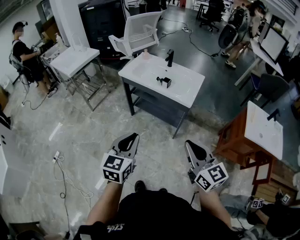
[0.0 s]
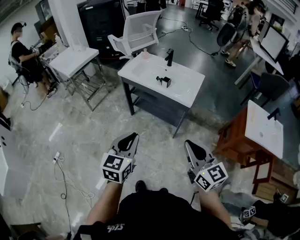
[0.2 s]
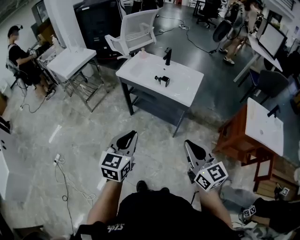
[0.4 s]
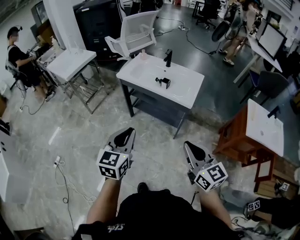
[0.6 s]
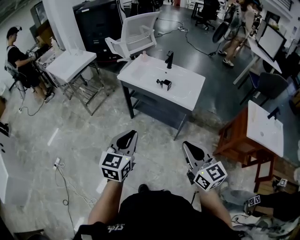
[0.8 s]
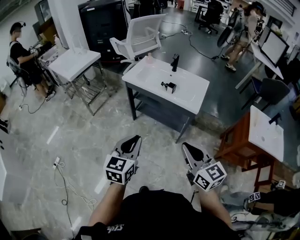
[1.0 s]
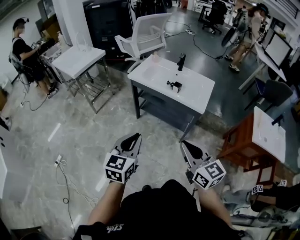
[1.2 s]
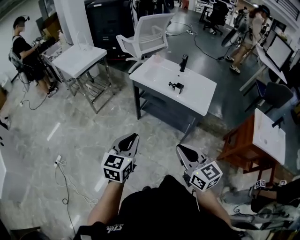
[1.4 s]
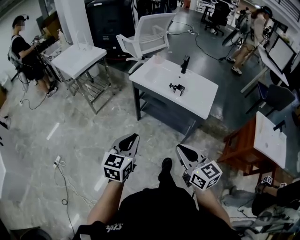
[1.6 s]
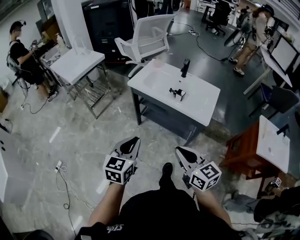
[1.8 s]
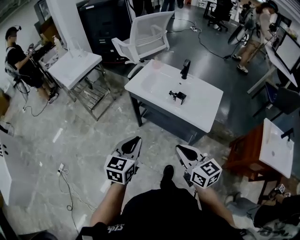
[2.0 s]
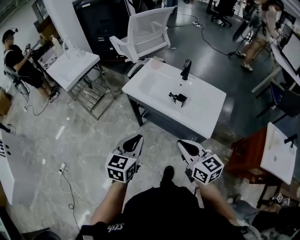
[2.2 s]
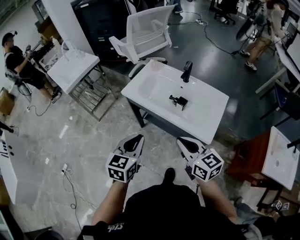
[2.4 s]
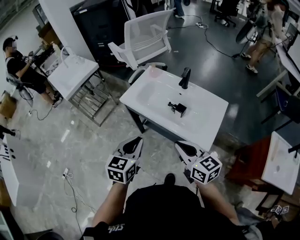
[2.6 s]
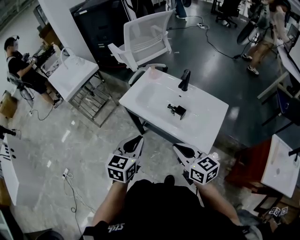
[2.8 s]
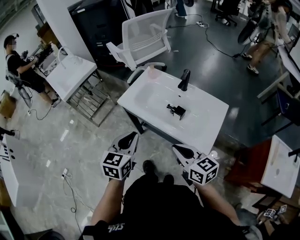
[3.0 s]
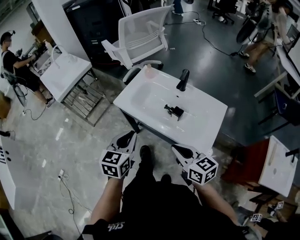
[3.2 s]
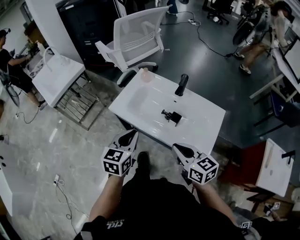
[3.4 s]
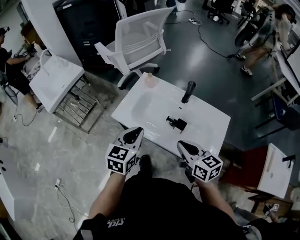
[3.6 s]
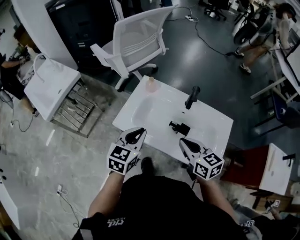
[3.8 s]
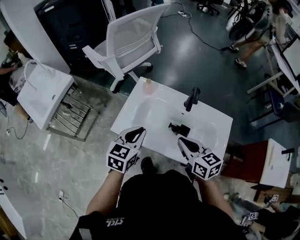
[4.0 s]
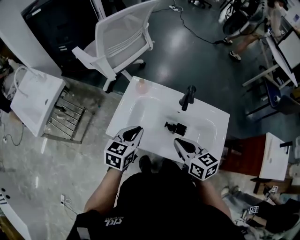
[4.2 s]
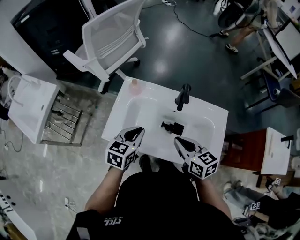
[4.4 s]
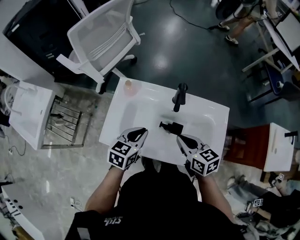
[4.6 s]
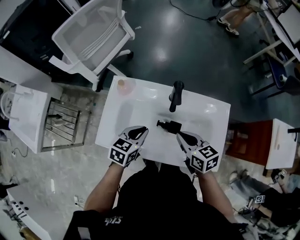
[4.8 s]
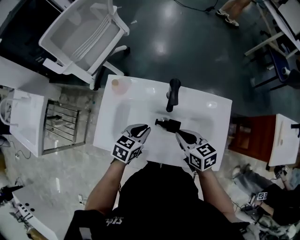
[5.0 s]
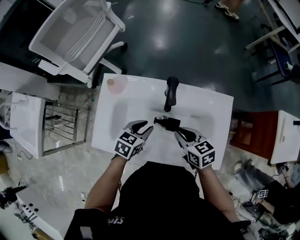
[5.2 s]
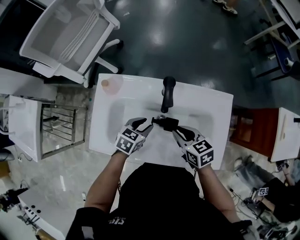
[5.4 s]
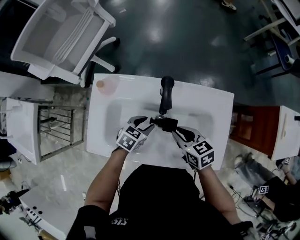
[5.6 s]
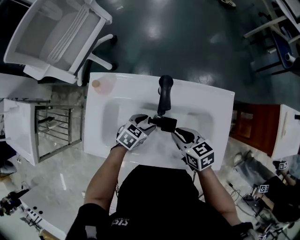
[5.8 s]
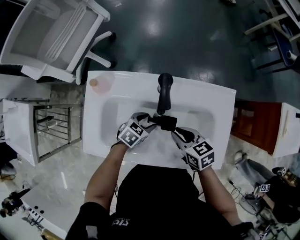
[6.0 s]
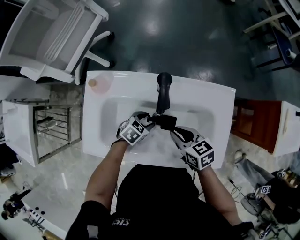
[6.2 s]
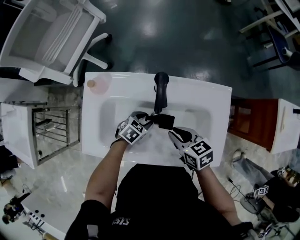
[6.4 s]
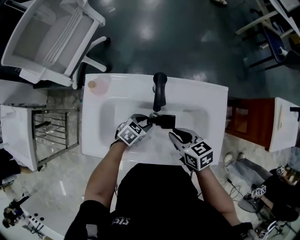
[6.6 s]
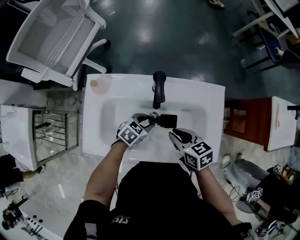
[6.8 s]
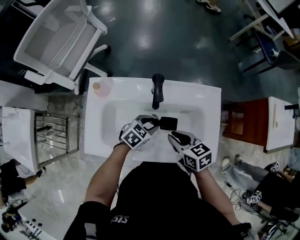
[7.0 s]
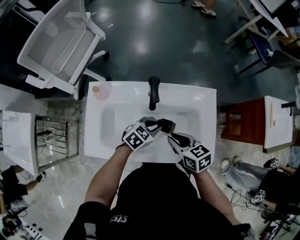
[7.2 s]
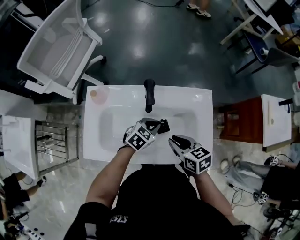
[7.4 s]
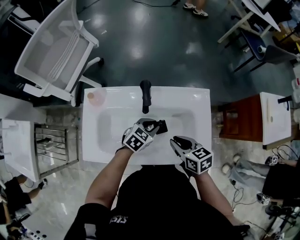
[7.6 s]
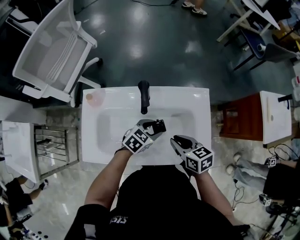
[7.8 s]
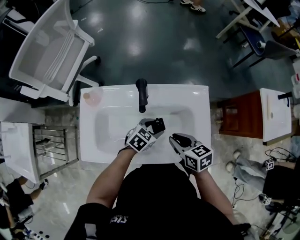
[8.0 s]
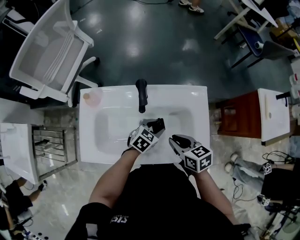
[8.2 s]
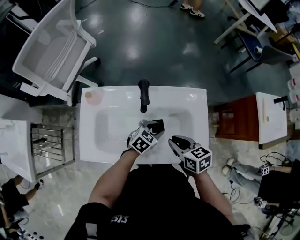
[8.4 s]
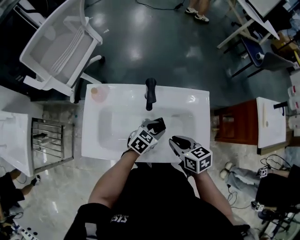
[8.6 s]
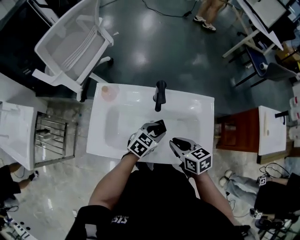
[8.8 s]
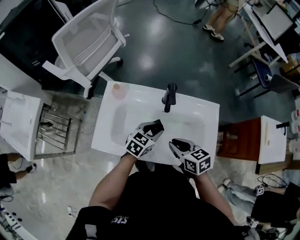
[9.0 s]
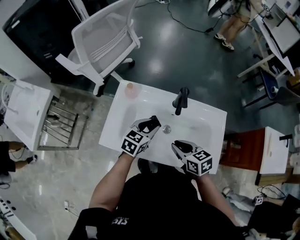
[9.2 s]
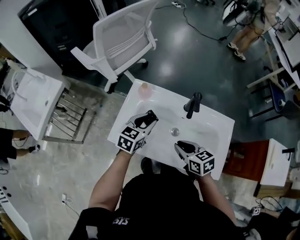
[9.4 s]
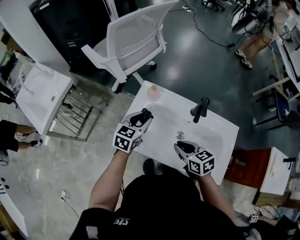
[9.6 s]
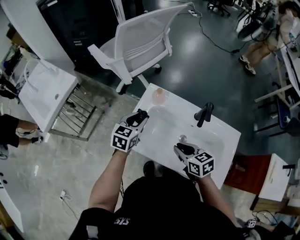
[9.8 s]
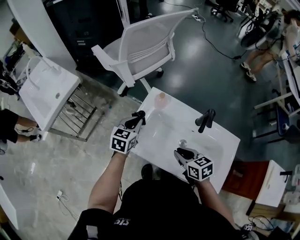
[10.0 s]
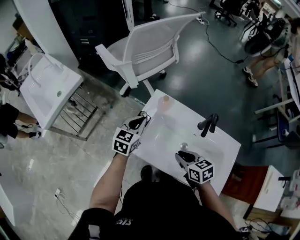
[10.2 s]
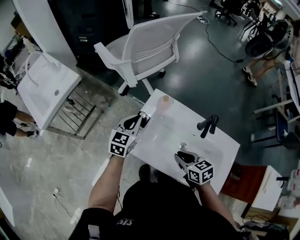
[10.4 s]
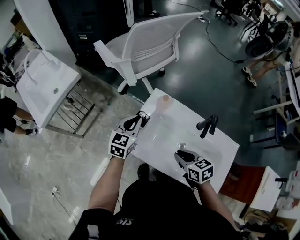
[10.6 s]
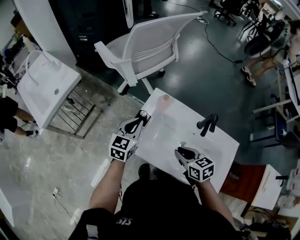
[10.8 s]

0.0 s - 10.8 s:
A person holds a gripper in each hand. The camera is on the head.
0.0 s - 1.6 s: Both grippers move to the left and forward, approximately 15 cm.
1.6 s - 3.0 s: The grippers both shift forward and to the right by about 35 cm.
3.0 s - 4.6 s: The left gripper ends up approximately 35 cm from where it was, and turns by roughly 40 degrees. The right gripper ends up about 30 cm from where it was, and turns by roughly 30 degrees.
4.6 s - 6.2 s: The right gripper goes about 15 cm downward, while the left gripper goes approximately 25 cm downward, turns by some 40 degrees, and opens.
6.2 s - 7.8 s: The left gripper heads upward and to the right, covering roughly 15 cm, and closes, then reopens. Meanwhile the right gripper is displaced upward and to the right by roughly 10 cm.
7.8 s - 9.2 s: The left gripper heads to the left and upward, covering roughly 20 cm, and swivels approximately 30 degrees. The right gripper goes about 10 cm to the left.
9.2 s - 10.8 s: The left gripper shifts approximately 20 cm to the left, changes its angle by about 30 degrees, and closes its fingers, while the right gripper goes about 10 cm to the left and forward.

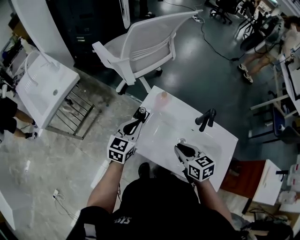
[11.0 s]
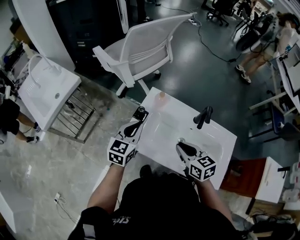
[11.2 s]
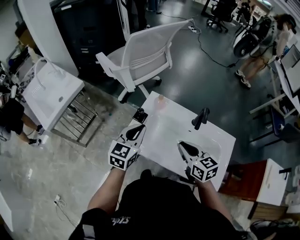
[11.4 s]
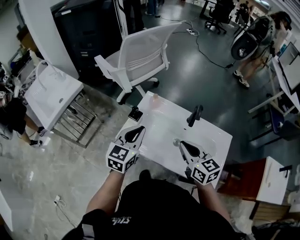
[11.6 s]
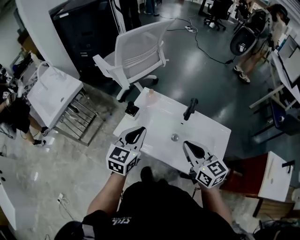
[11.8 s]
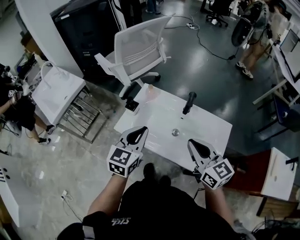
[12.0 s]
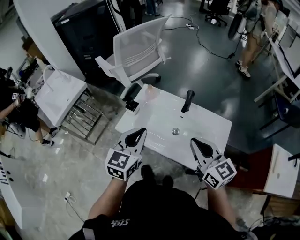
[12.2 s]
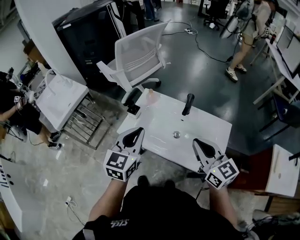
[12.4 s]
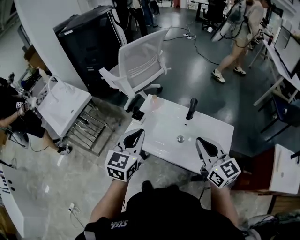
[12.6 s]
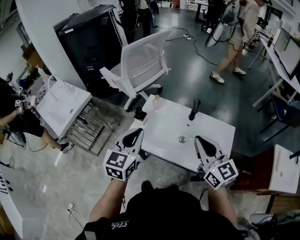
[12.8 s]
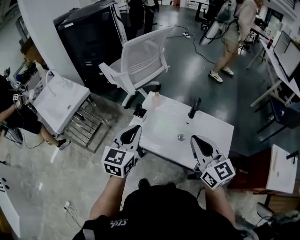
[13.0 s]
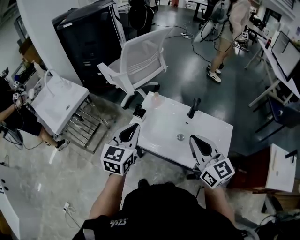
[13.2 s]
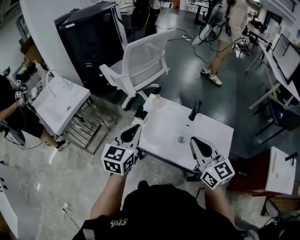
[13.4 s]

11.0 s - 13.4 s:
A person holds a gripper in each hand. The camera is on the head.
11.0 s - 12.2 s: The left gripper shifts roughly 30 cm backward, upward and to the right; the right gripper is displaced upward, backward and to the right by about 25 cm, and turns by about 30 degrees.
12.2 s - 13.4 s: Both grippers move to the left, some 10 cm.

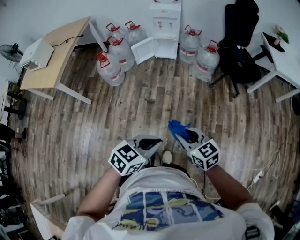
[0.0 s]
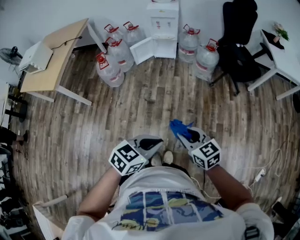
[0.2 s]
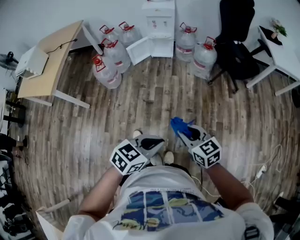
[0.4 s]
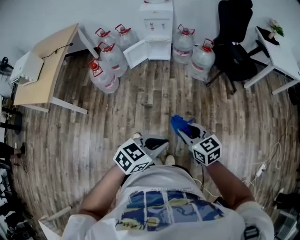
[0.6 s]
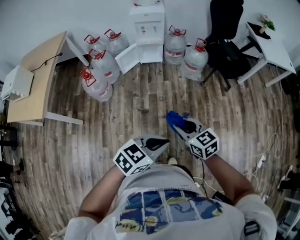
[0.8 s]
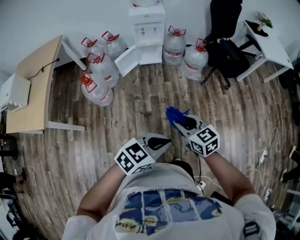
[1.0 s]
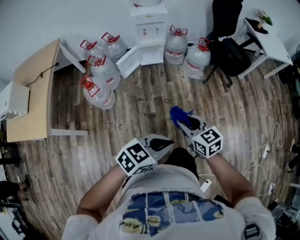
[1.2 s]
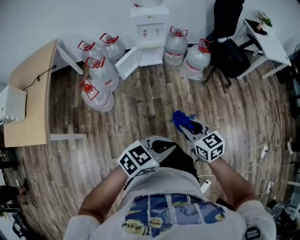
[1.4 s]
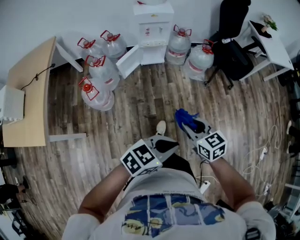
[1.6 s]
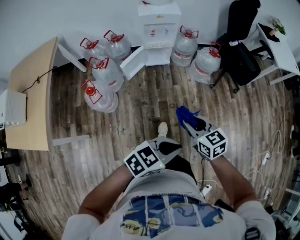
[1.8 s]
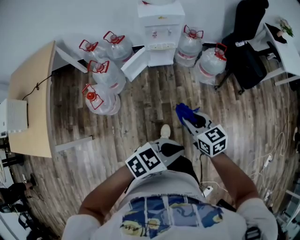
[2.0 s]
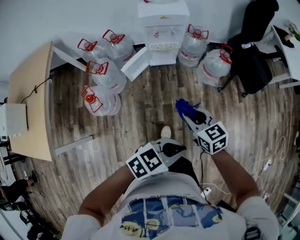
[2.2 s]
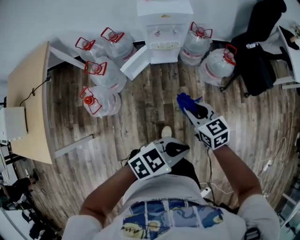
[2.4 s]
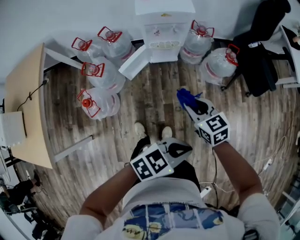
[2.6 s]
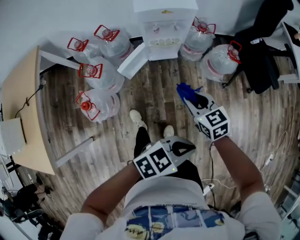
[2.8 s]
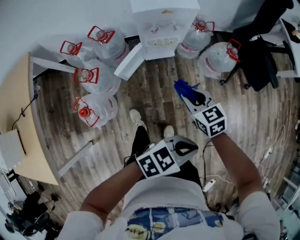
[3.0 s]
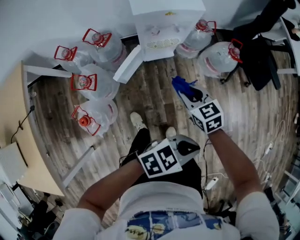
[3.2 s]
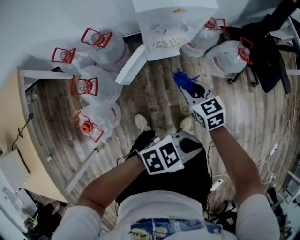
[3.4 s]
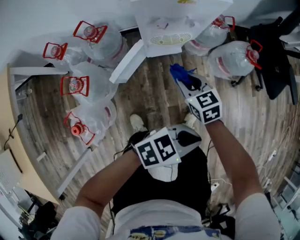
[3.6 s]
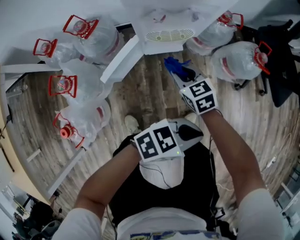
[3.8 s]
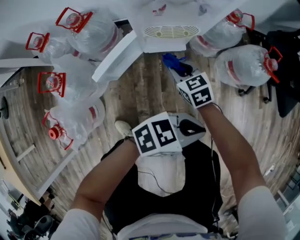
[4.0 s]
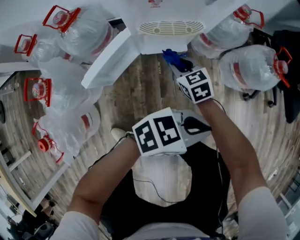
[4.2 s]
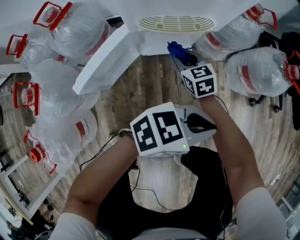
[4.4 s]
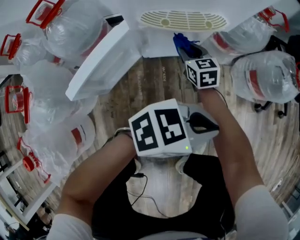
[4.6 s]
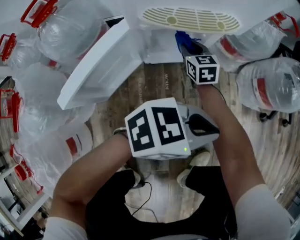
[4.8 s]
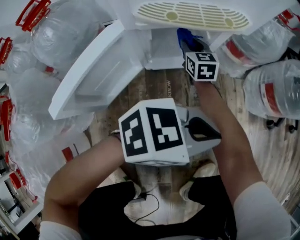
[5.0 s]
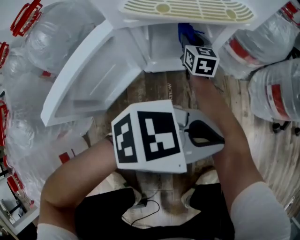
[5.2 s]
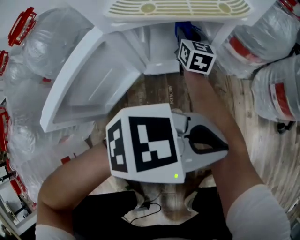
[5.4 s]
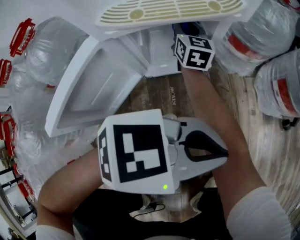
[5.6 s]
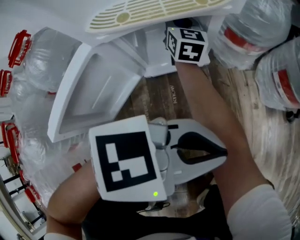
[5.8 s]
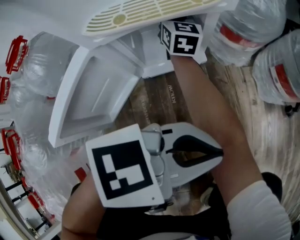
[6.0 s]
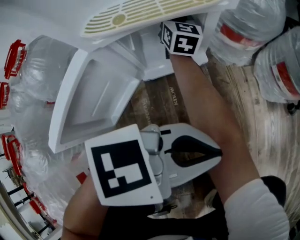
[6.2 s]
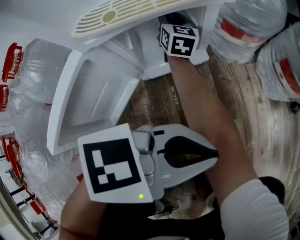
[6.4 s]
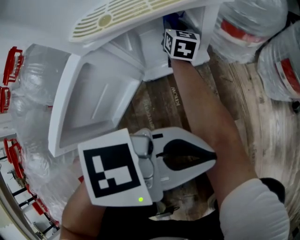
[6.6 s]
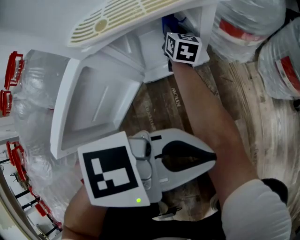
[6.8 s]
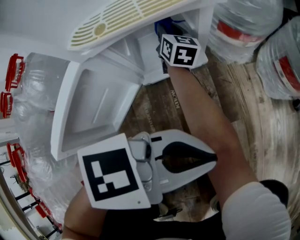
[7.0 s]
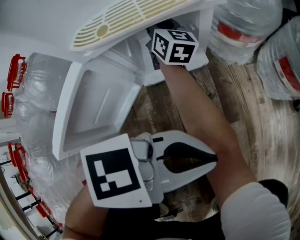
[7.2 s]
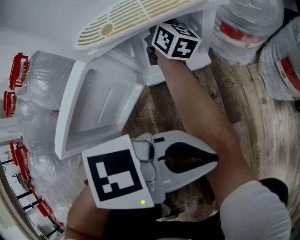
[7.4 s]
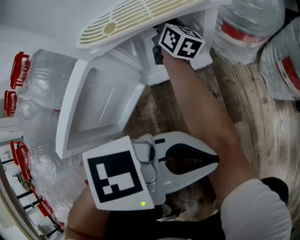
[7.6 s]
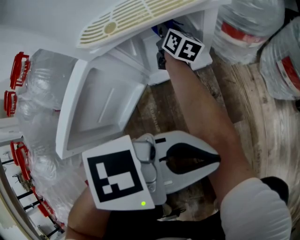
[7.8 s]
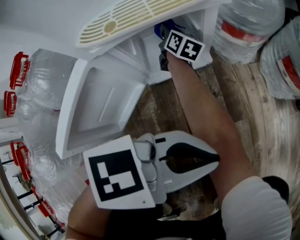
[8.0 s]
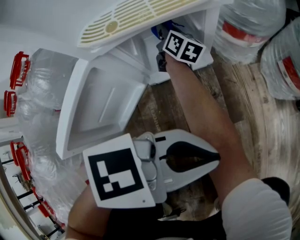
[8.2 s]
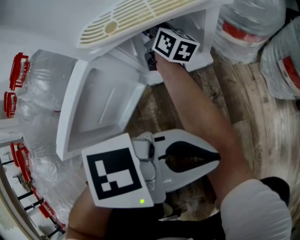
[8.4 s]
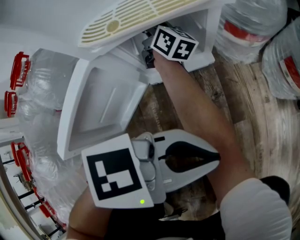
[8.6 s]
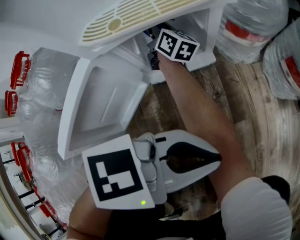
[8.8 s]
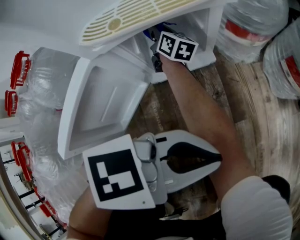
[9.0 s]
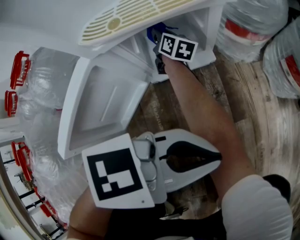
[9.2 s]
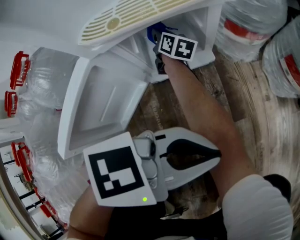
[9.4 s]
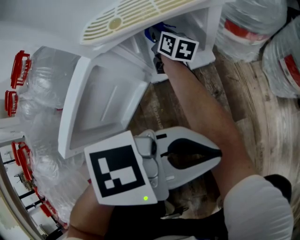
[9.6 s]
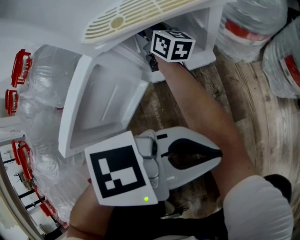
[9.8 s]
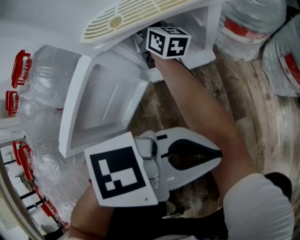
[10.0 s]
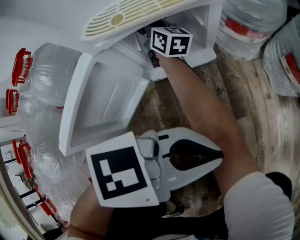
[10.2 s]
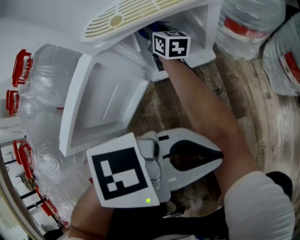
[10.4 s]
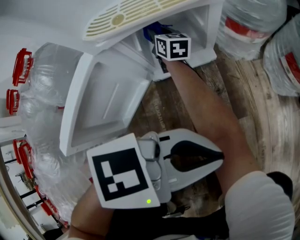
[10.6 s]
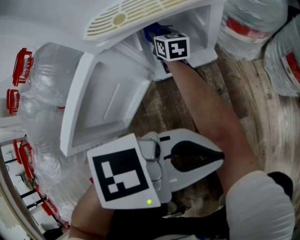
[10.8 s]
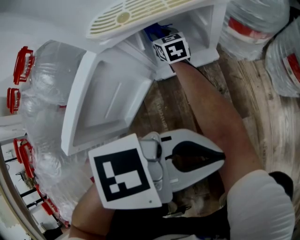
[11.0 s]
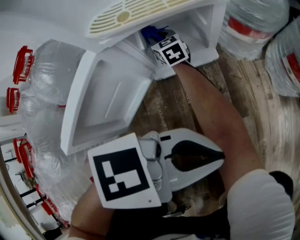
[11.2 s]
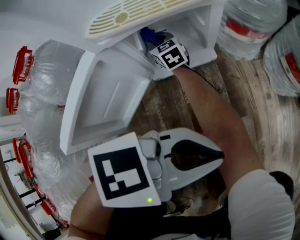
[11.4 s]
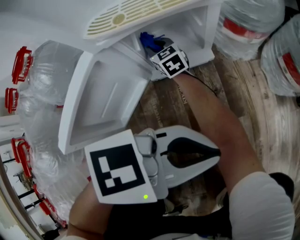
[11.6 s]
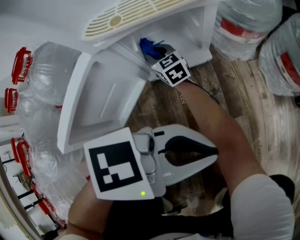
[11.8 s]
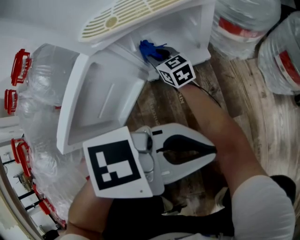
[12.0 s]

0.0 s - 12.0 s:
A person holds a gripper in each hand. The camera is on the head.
0.0 s - 1.6 s: The right gripper changes place by some 35 cm, and changes its angle by some 20 degrees; the left gripper ends up roughly 30 cm from where it was, and changes its angle by roughly 30 degrees.
1.6 s - 3.0 s: The right gripper moves some 50 cm, while the left gripper ends up approximately 35 cm from where it was.
3.0 s - 4.4 s: Both grippers travel together downward, roughly 50 cm.
4.4 s - 6.0 s: The left gripper is displaced downward by some 10 cm; the right gripper goes some 25 cm forward and to the left, and tilts its fingers approximately 30 degrees upward.
6.0 s - 7.6 s: The right gripper moves approximately 10 cm downward and comes back, and changes its angle by some 30 degrees.
7.6 s - 9.0 s: The right gripper goes up and down, roughly 10 cm each way, reversing 2 times.
9.0 s - 10.4 s: The right gripper moves up and down over some 10 cm, changing direction 2 times.
10.4 s - 12.0 s: The right gripper ends up roughly 10 cm from where it was, and swivels about 30 degrees.
